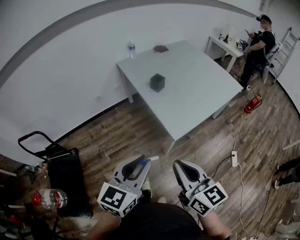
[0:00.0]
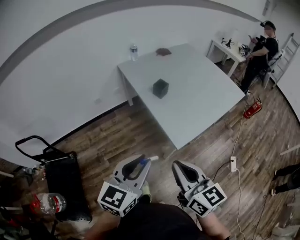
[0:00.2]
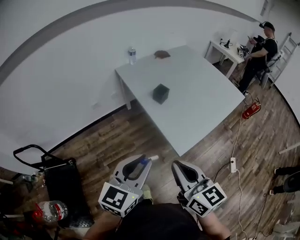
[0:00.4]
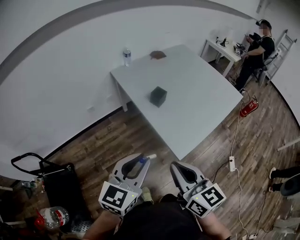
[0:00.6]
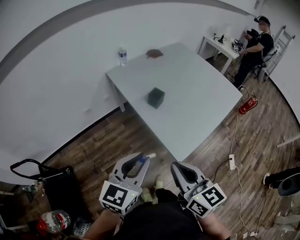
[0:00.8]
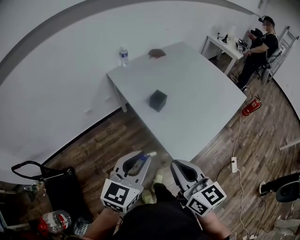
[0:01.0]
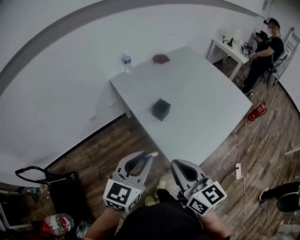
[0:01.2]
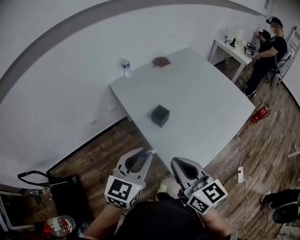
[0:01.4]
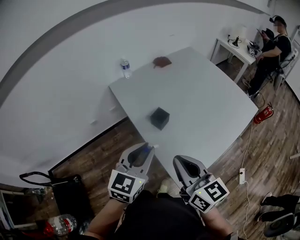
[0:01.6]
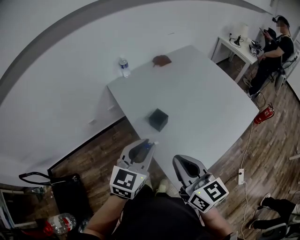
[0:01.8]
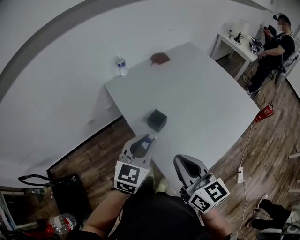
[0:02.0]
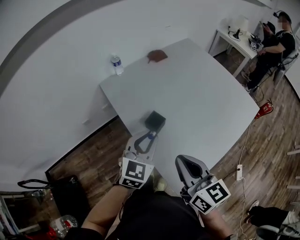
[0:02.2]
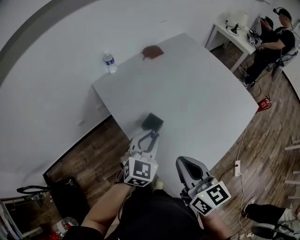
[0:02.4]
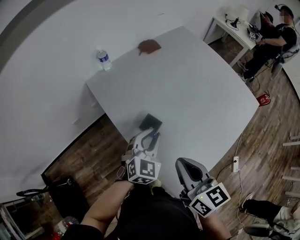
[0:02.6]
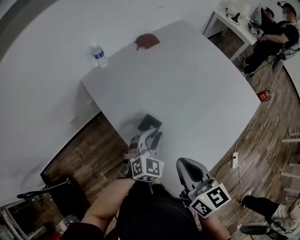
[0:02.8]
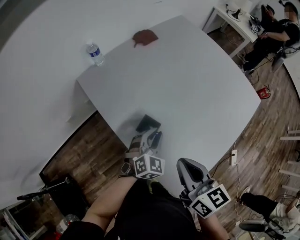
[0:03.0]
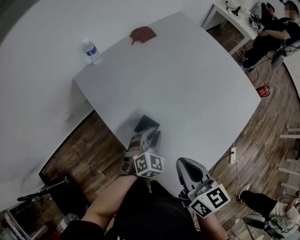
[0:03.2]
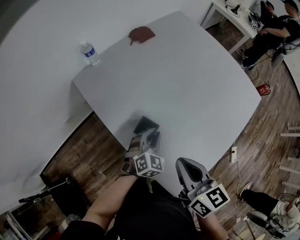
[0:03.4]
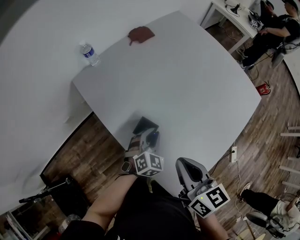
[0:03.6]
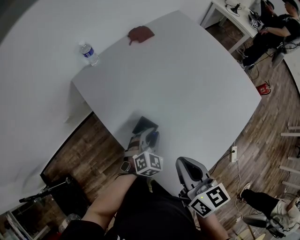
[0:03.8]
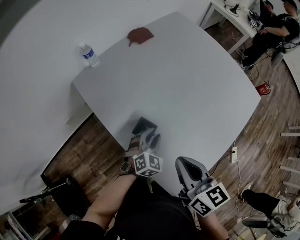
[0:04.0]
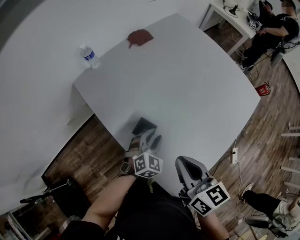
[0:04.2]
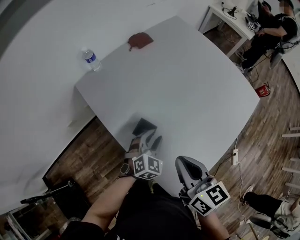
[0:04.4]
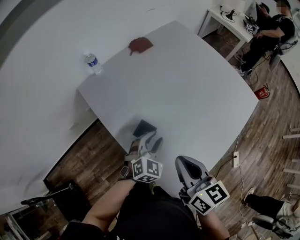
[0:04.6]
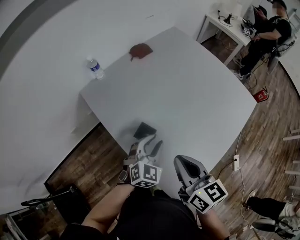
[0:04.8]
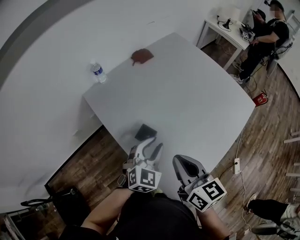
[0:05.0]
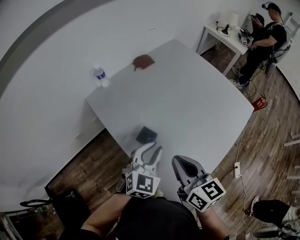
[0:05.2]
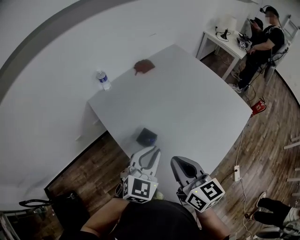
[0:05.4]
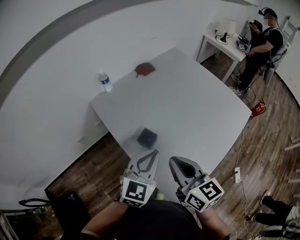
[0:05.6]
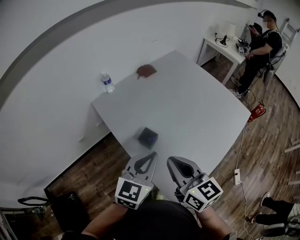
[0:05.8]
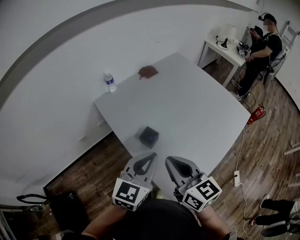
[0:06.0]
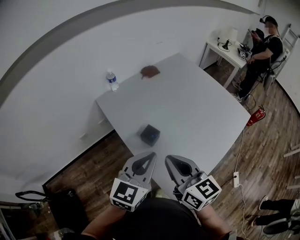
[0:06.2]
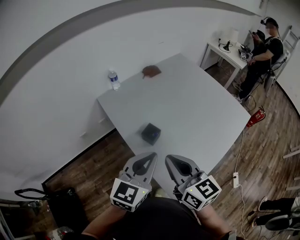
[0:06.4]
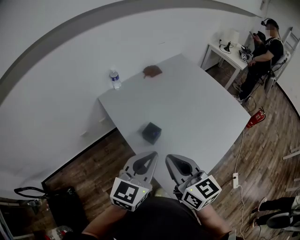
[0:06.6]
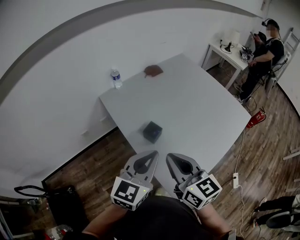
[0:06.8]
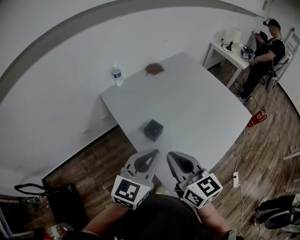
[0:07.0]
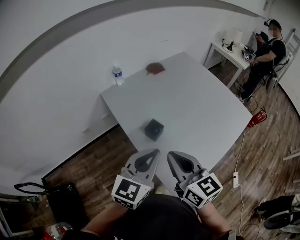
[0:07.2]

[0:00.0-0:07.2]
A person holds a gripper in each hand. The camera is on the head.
0:00.0 to 0:01.4: The two grippers go some 30 cm forward.
0:01.4 to 0:02.8: The left gripper travels forward, downward and to the right by about 30 cm, and changes its angle by some 30 degrees; the right gripper is displaced forward and downward by some 20 cm.
0:02.8 to 0:04.4: The left gripper goes approximately 5 cm downward.
0:04.4 to 0:05.8: The left gripper goes about 25 cm upward and backward, changes its angle by roughly 30 degrees, and closes up; the right gripper goes roughly 5 cm upward.
0:05.8 to 0:07.2: The right gripper changes place by approximately 5 cm. The left gripper is displaced backward by roughly 5 cm.

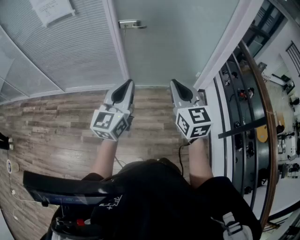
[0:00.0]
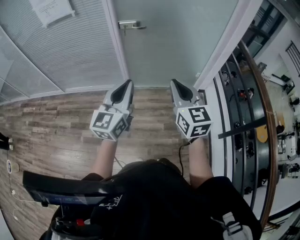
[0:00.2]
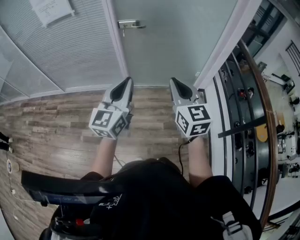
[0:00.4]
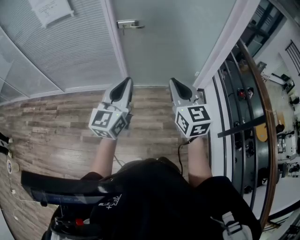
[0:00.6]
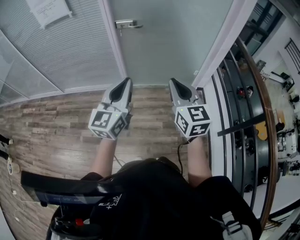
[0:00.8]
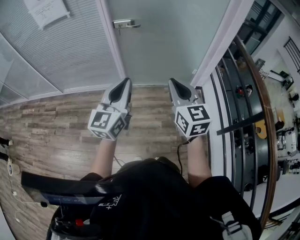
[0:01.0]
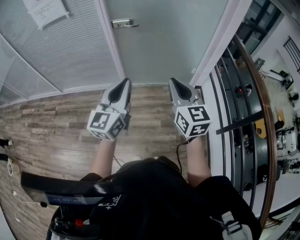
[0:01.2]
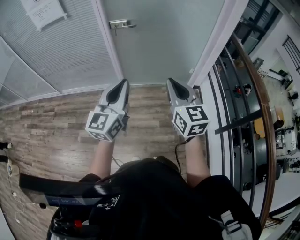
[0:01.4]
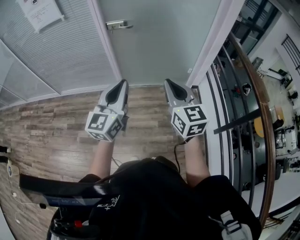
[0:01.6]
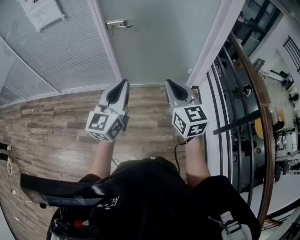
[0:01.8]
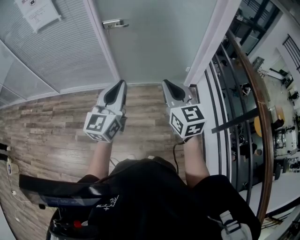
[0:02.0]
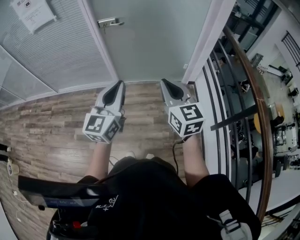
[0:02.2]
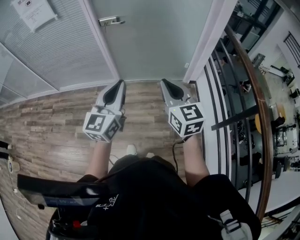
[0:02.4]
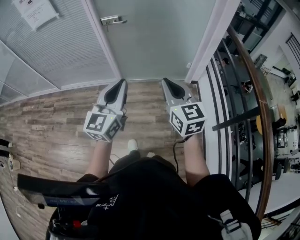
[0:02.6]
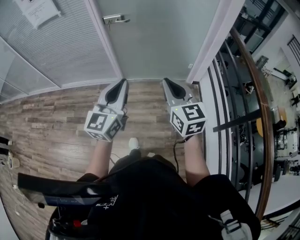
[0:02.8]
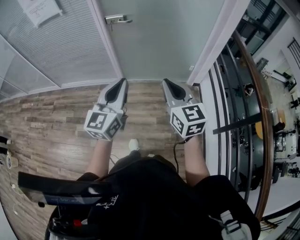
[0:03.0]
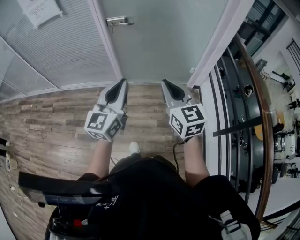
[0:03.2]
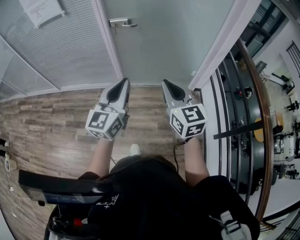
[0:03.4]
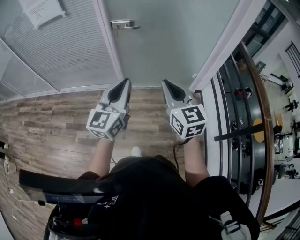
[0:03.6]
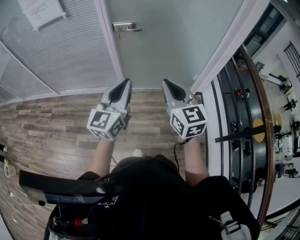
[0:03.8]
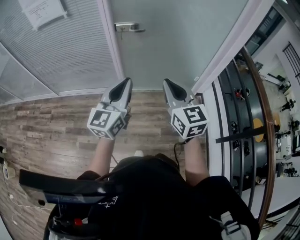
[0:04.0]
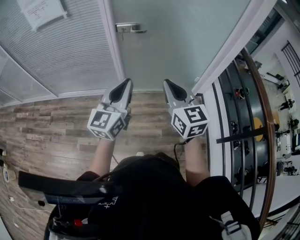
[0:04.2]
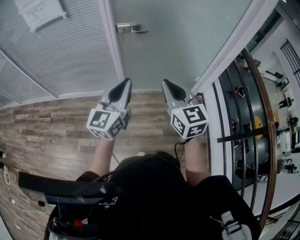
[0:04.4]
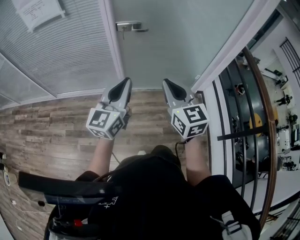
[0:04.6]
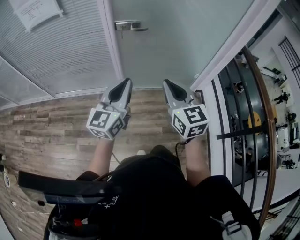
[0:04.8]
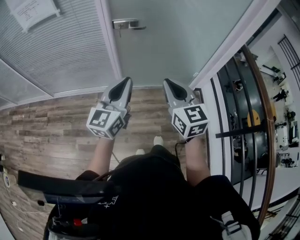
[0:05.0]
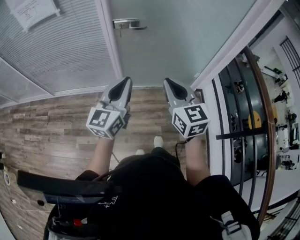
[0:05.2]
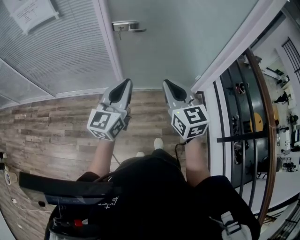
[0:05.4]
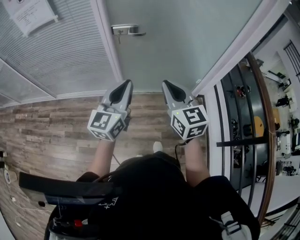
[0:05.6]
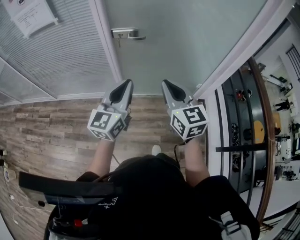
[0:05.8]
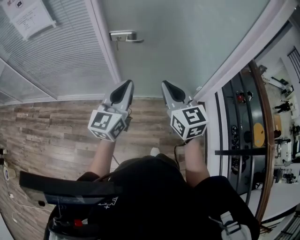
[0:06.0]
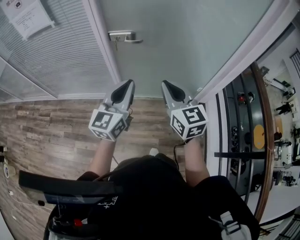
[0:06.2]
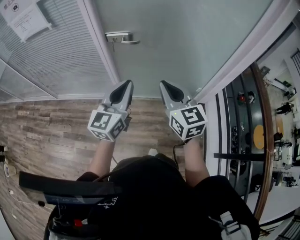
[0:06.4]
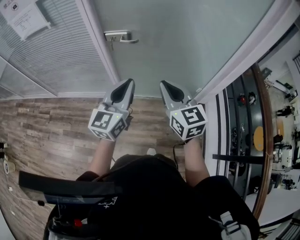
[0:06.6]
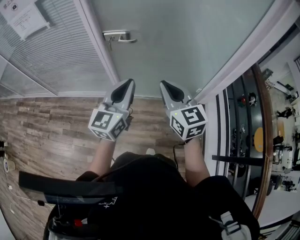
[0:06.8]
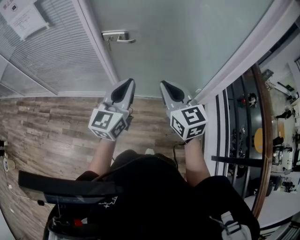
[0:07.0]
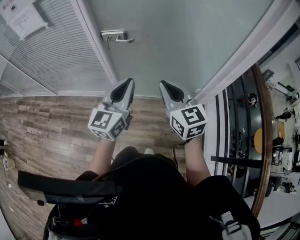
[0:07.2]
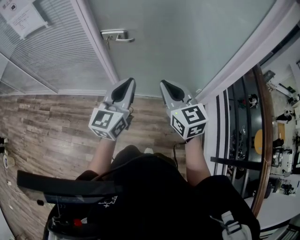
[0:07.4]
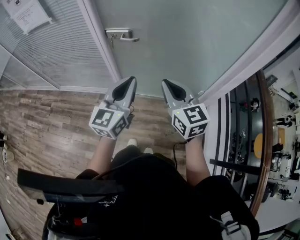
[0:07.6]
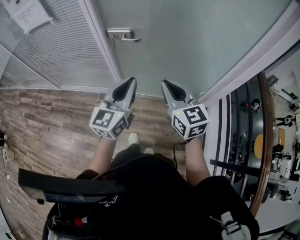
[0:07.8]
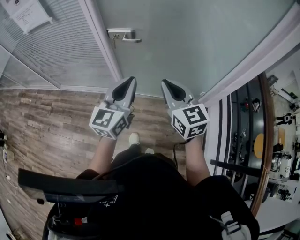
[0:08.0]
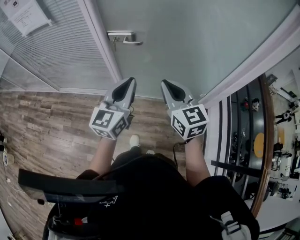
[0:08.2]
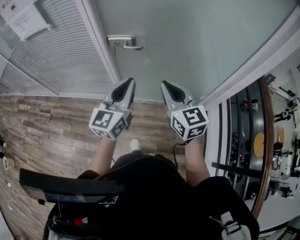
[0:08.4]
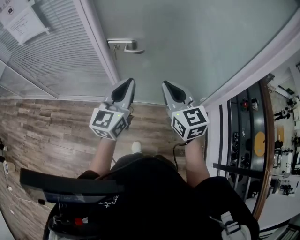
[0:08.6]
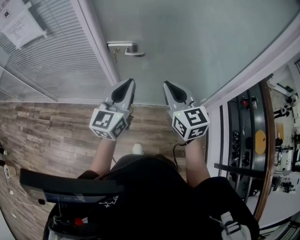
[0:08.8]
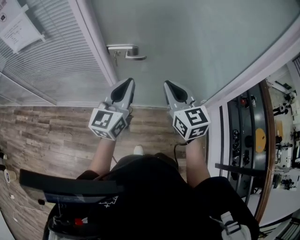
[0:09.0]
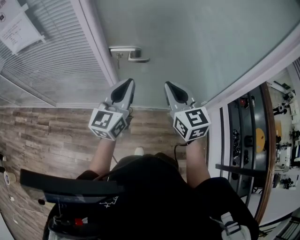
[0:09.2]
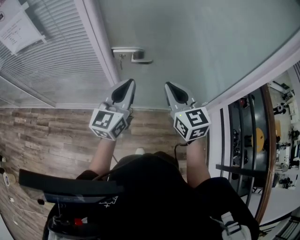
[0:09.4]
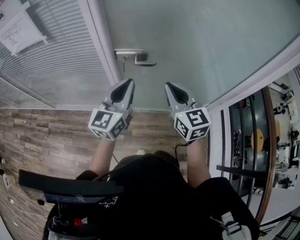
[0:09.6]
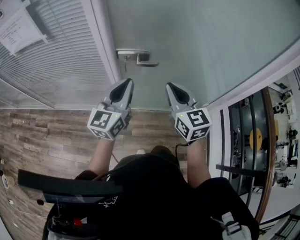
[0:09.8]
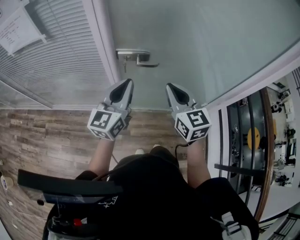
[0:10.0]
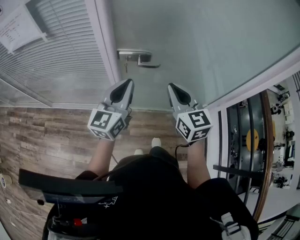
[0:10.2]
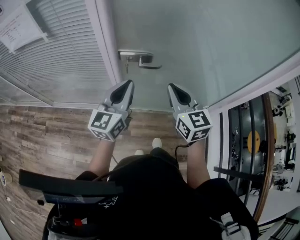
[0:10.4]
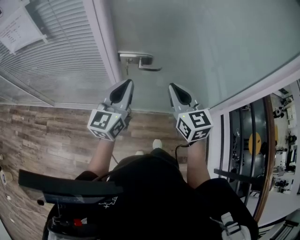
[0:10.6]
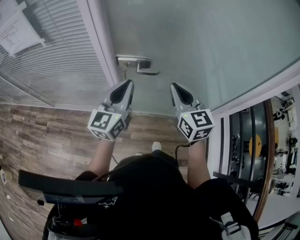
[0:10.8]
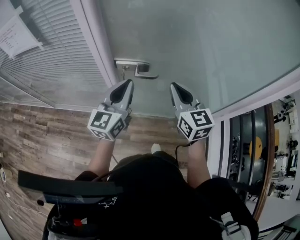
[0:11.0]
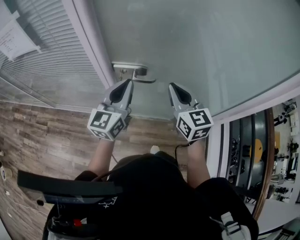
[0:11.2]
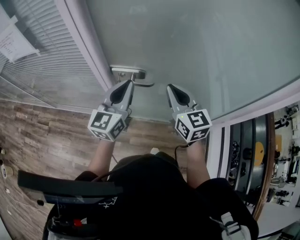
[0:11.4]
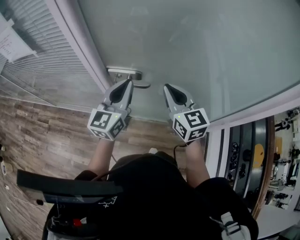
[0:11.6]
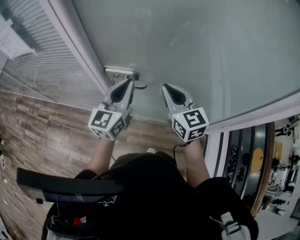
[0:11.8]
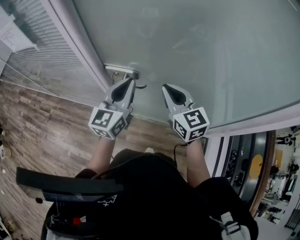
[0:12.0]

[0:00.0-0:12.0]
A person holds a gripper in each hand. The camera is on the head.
0:00.0 to 0:01.6: The left gripper moves some 5 cm. The right gripper moves about 5 cm.
0:01.6 to 0:03.0: There are only small adjustments of the grippers.
0:03.0 to 0:04.4: The left gripper moves forward and to the left, roughly 15 cm. The right gripper heads to the left and forward, covering some 15 cm.
0:04.4 to 0:06.0: The grippers both shift forward by approximately 10 cm.
0:06.0 to 0:07.6: Both grippers move to the right, roughly 5 cm.
0:07.6 to 0:09.0: The left gripper moves forward and to the left, approximately 10 cm. Meanwhile the right gripper travels forward by about 10 cm.
0:09.0 to 0:10.4: The left gripper shifts about 10 cm to the left and forward, while the right gripper moves forward and to the left, approximately 5 cm.
0:10.4 to 0:12.0: Both grippers move forward and to the right, about 10 cm.

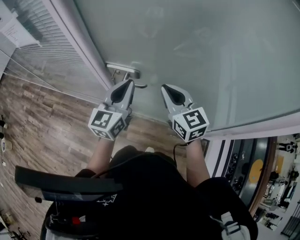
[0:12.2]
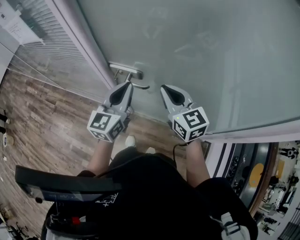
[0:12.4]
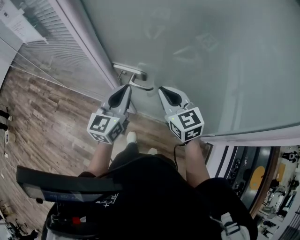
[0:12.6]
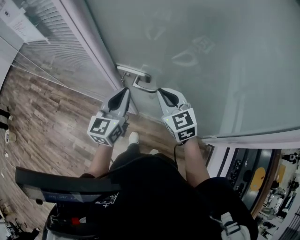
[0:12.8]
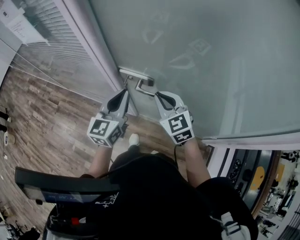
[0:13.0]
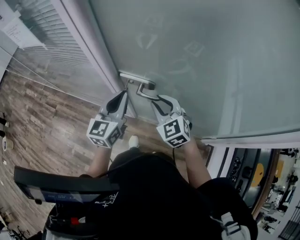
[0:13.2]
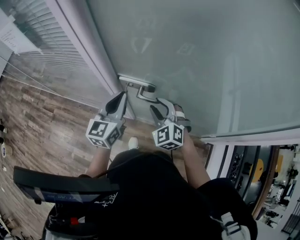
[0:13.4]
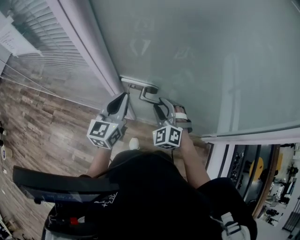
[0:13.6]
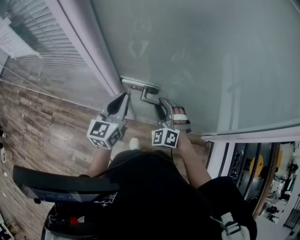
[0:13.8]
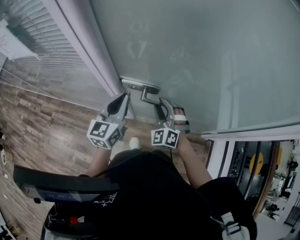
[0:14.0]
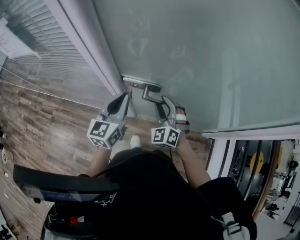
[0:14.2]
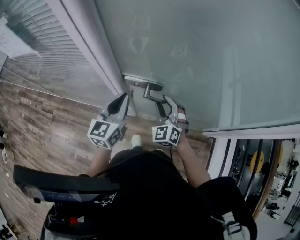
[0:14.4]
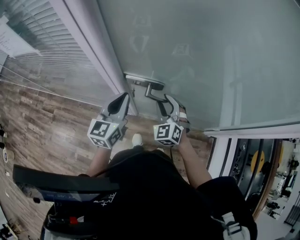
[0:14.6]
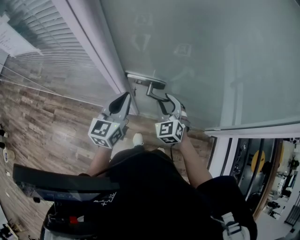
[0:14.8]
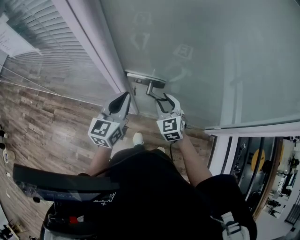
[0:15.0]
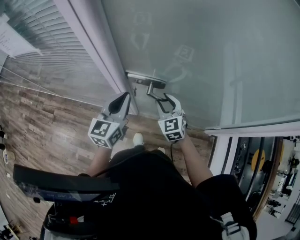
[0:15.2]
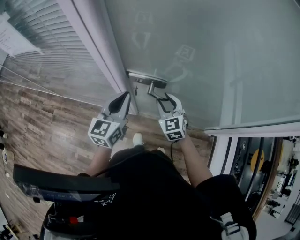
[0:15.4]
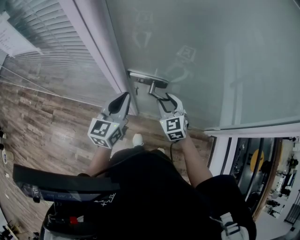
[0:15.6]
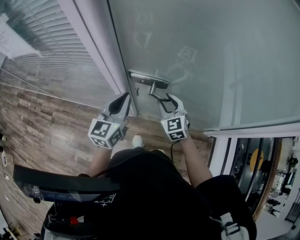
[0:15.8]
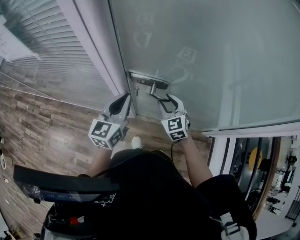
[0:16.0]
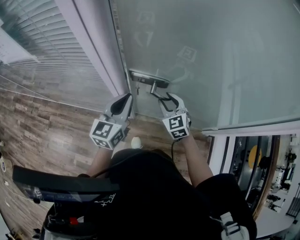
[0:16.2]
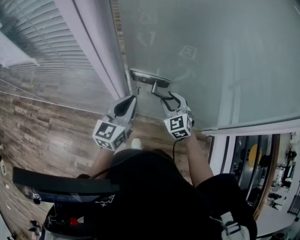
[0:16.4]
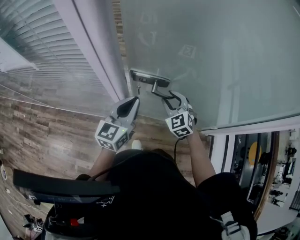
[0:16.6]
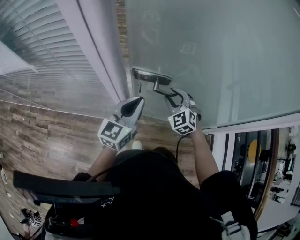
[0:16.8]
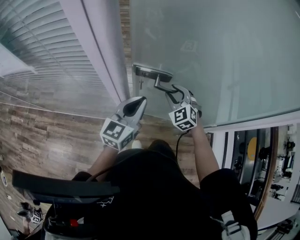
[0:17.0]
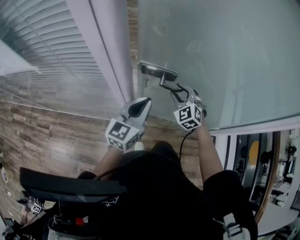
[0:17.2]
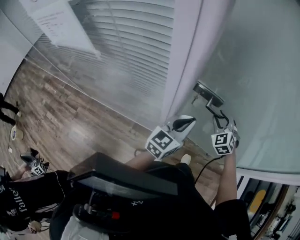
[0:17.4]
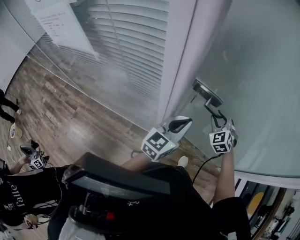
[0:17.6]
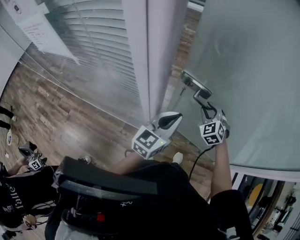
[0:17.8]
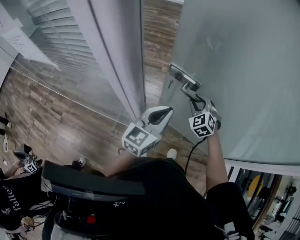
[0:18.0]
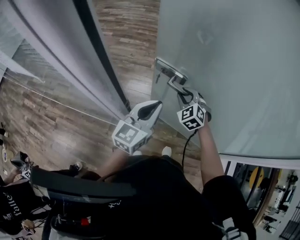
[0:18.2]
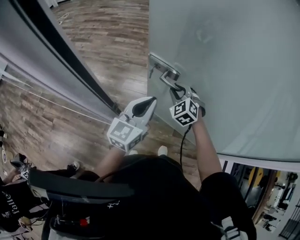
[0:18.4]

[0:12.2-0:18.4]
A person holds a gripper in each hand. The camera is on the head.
0:12.2 to 0:13.8: The left gripper moves to the left, downward and forward, roughly 15 cm. Meanwhile the right gripper goes about 20 cm downward and to the left, rolls counterclockwise, seen from behind, by roughly 50 degrees, and opens up.
0:13.8 to 0:15.4: The right gripper swivels some 40 degrees.
0:15.4 to 0:16.8: The left gripper is displaced to the right by approximately 5 cm; the right gripper ends up roughly 5 cm from where it was, and turns by approximately 20 degrees.
0:16.8 to 0:18.4: Both grippers move forward, about 10 cm.
